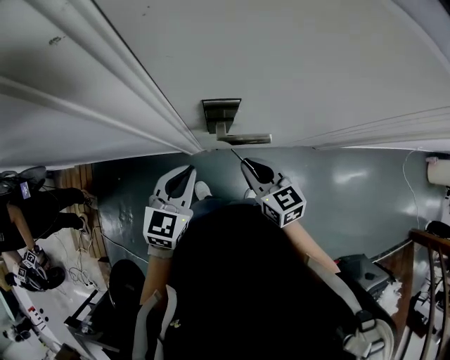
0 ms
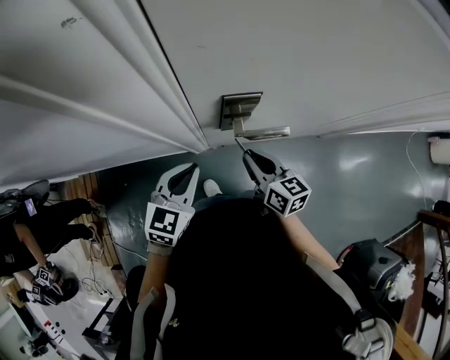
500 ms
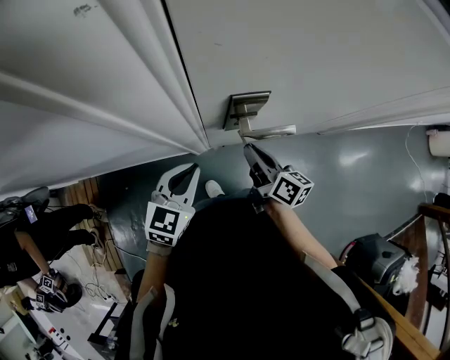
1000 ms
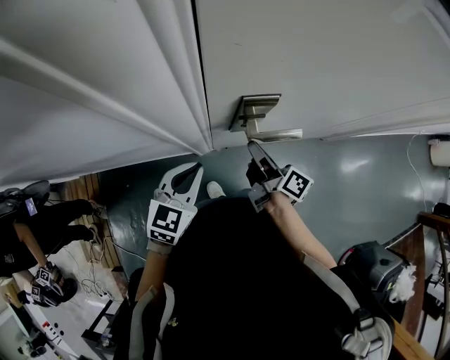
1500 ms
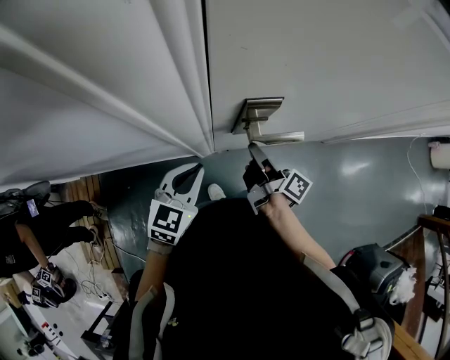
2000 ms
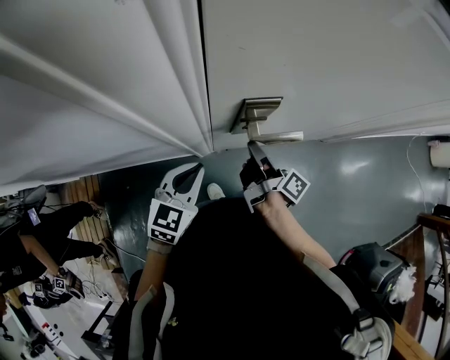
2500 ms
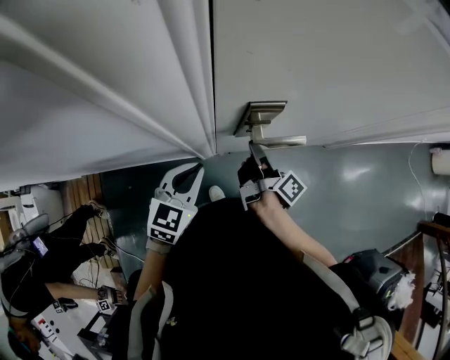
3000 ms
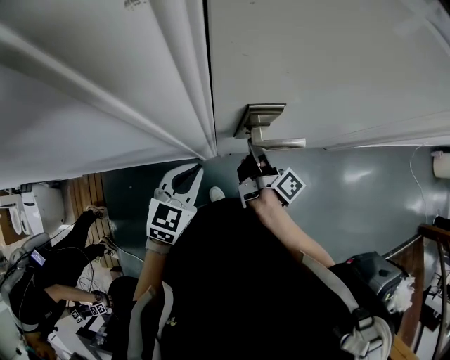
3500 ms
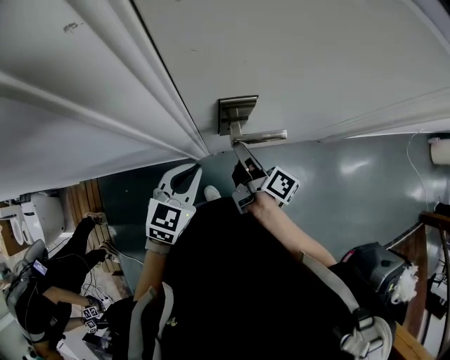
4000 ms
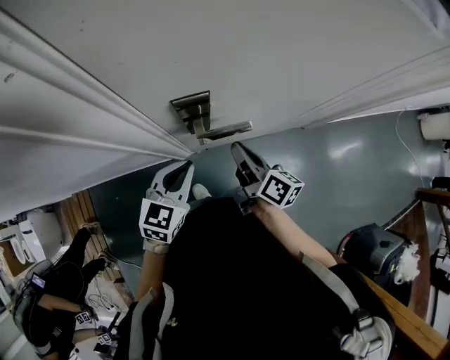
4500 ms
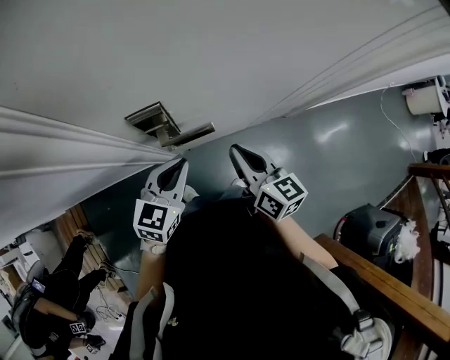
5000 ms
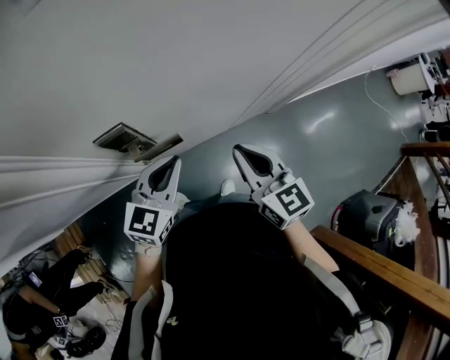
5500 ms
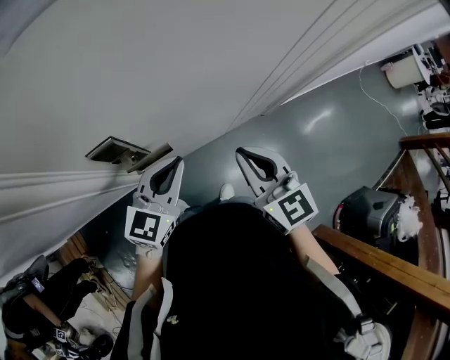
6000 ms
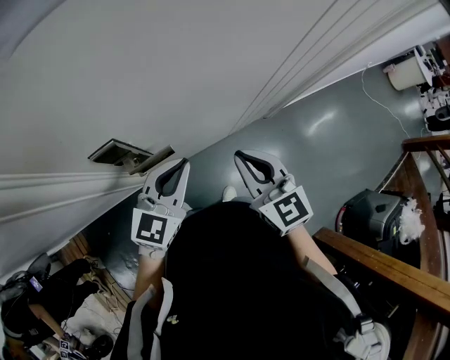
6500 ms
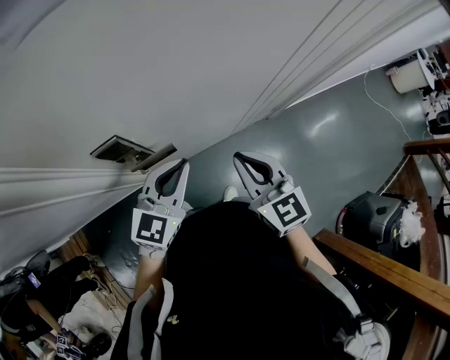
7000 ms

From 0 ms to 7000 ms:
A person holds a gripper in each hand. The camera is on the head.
From 0 ms to 2000 ms: The left gripper heads to the left, covering roughly 5 cm; the right gripper changes place by some 5 cm, and twists some 70 degrees clockwise, seen from behind.
From 2000 ms to 3500 ms: The grippers stay close to where they were, moving slightly.
From 3500 ms to 5000 ms: The right gripper is displaced to the right and upward by roughly 15 cm, and rotates around the line of its fingers by some 60 degrees, counterclockwise from behind. The left gripper travels to the right by about 15 cm.
From 5000 ms to 7000 ms: Both grippers move to the right and upward, roughly 10 cm. The right gripper swivels roughly 30 degrees.

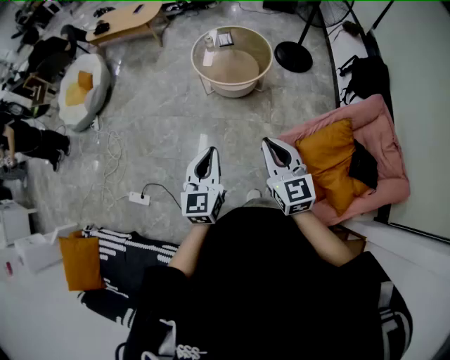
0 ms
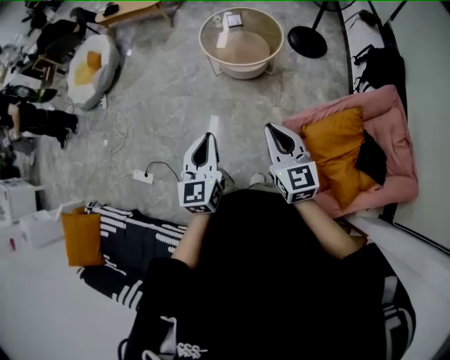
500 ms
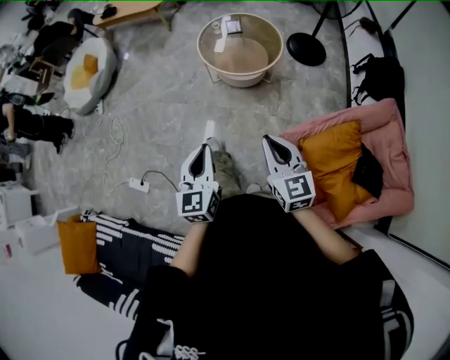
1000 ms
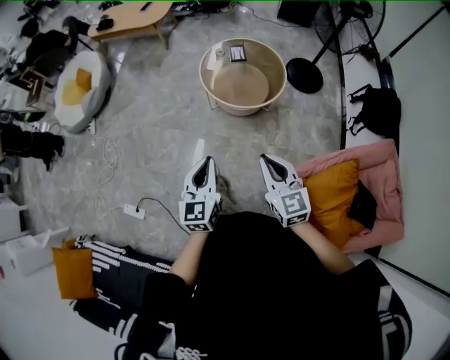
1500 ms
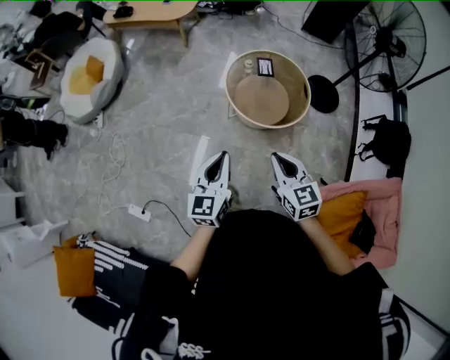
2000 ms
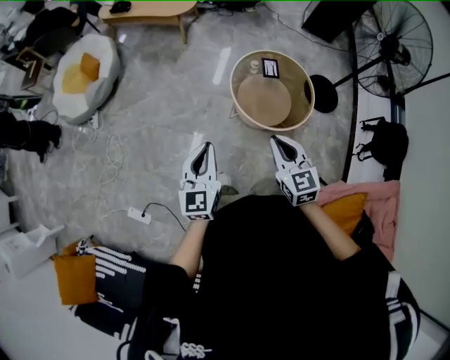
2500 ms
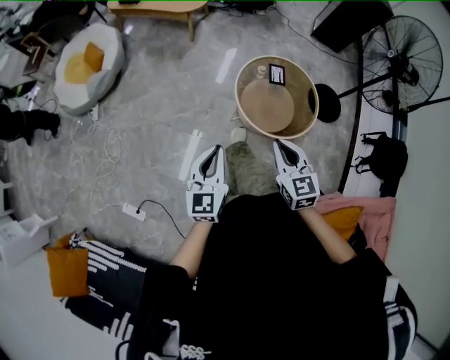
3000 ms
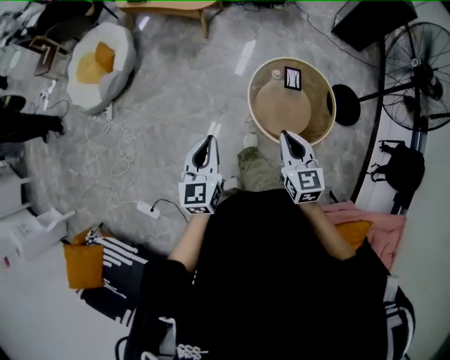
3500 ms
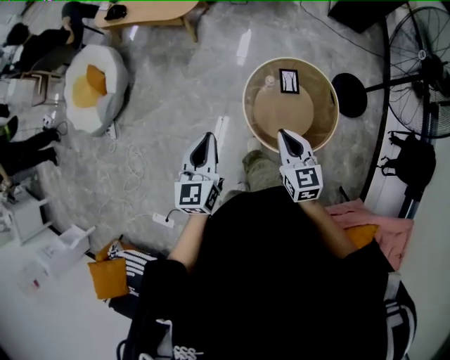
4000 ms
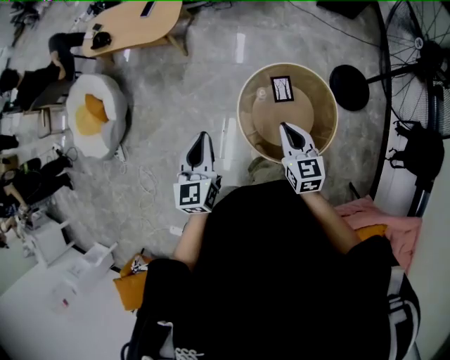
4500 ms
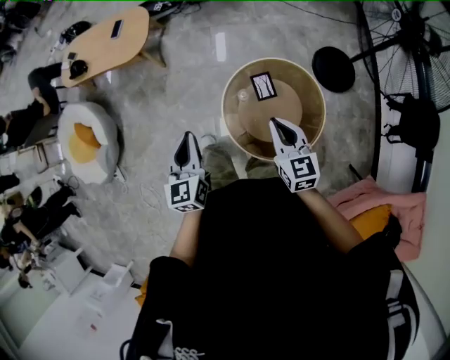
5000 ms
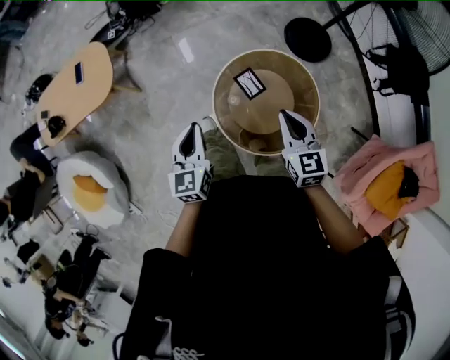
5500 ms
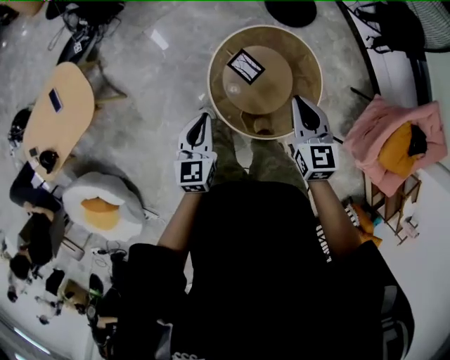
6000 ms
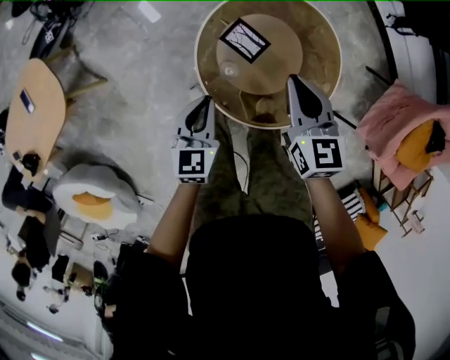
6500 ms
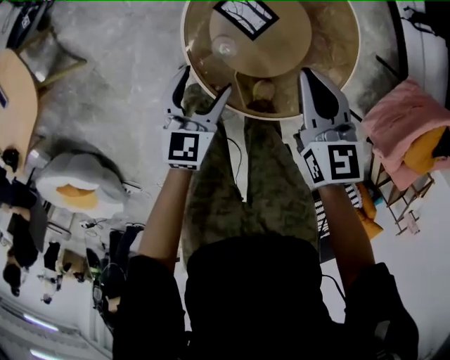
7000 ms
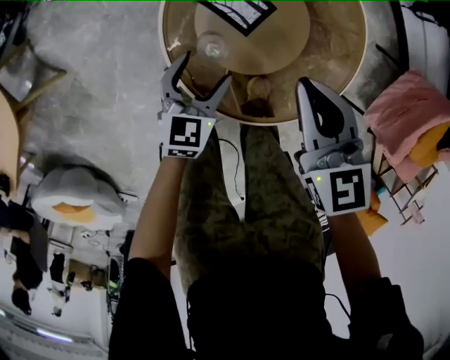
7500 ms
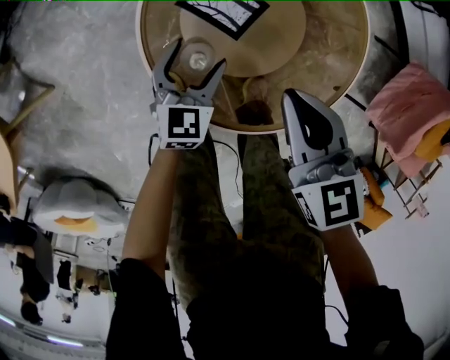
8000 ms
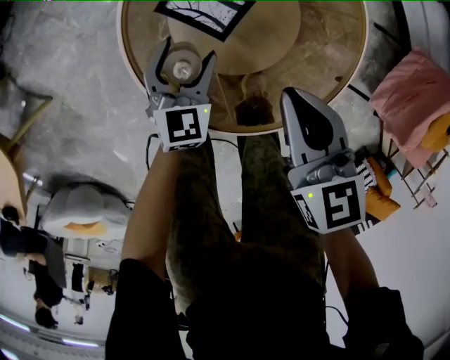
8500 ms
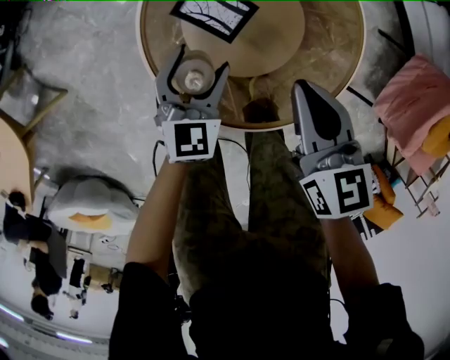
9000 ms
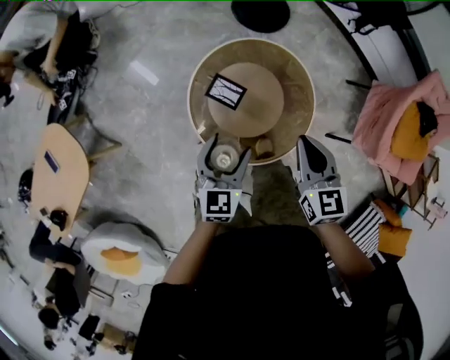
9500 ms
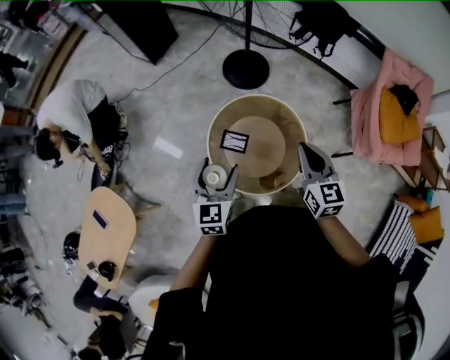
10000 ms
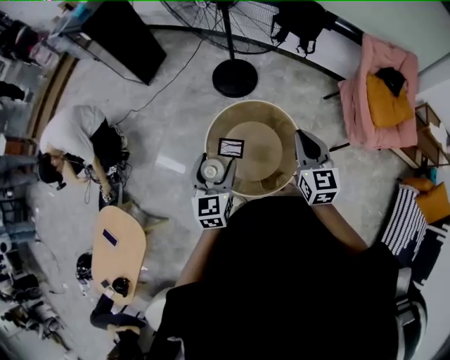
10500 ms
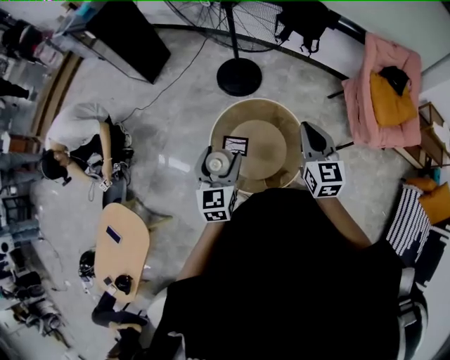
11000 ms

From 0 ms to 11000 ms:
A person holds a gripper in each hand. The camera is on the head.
From 0 ms to 2000 ms: Both grippers move forward, approximately 35 cm.
From 2000 ms to 3500 ms: The right gripper shifts roughly 25 cm forward. The left gripper travels forward and to the left by roughly 25 cm.
From 3500 ms to 5500 ms: The pair of grippers is taken approximately 50 cm. The right gripper changes its angle by approximately 40 degrees. Meanwhile the left gripper swivels some 40 degrees.
From 5500 ms to 7500 ms: Both grippers travel together downward, roughly 40 cm. The left gripper rotates some 40 degrees, and opens.
From 7500 ms to 9000 ms: The left gripper travels forward by about 5 cm, and moves roughly 5 cm downward and comes back; the right gripper ends up some 5 cm from where it was.
From 9000 ms to 11000 ms: The two grippers go about 50 cm upward. The right gripper changes its angle by approximately 40 degrees.

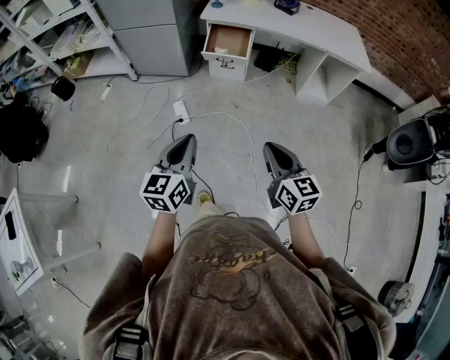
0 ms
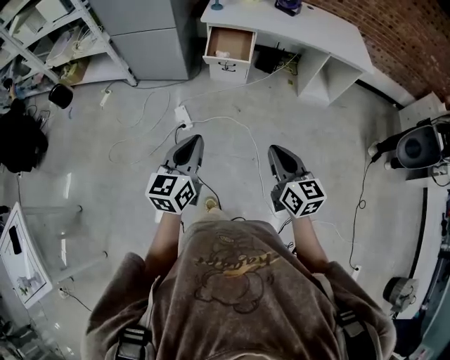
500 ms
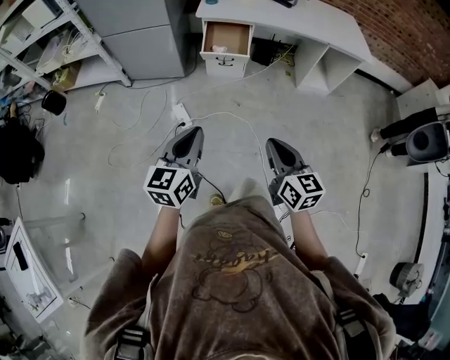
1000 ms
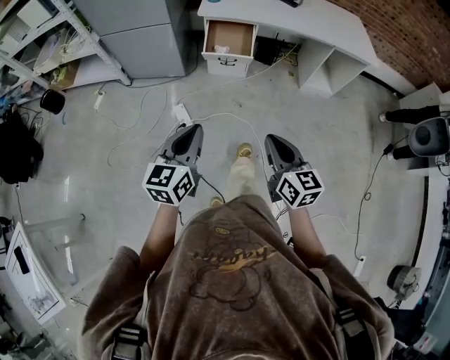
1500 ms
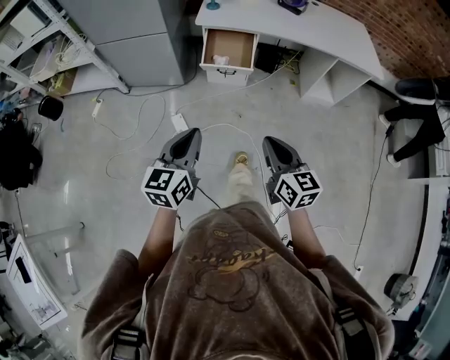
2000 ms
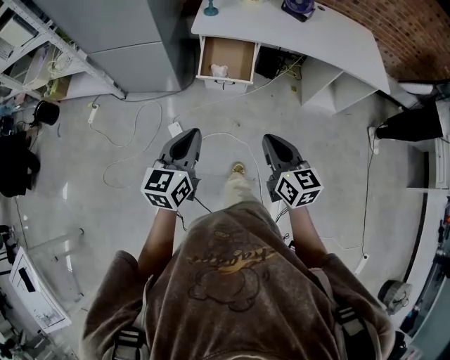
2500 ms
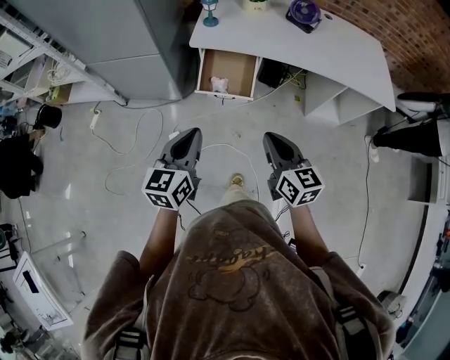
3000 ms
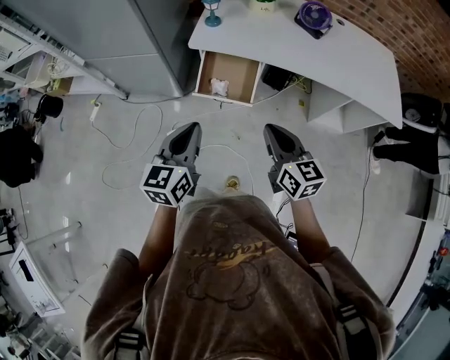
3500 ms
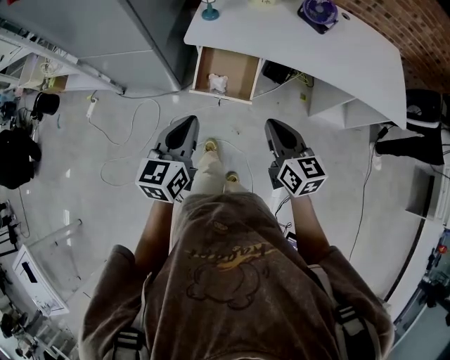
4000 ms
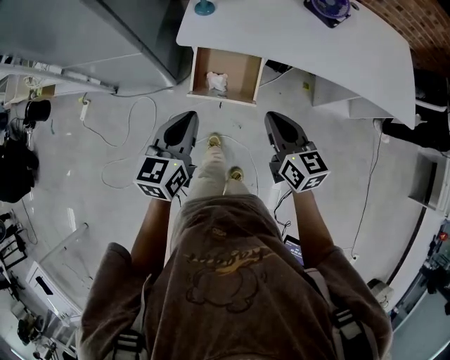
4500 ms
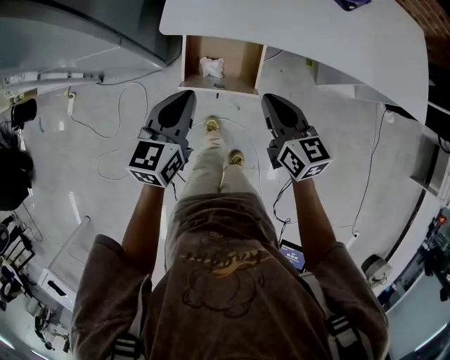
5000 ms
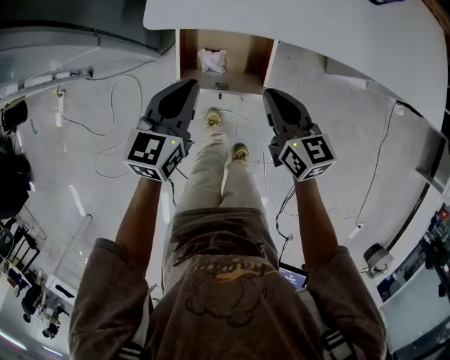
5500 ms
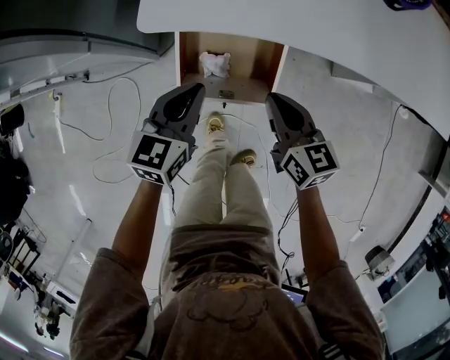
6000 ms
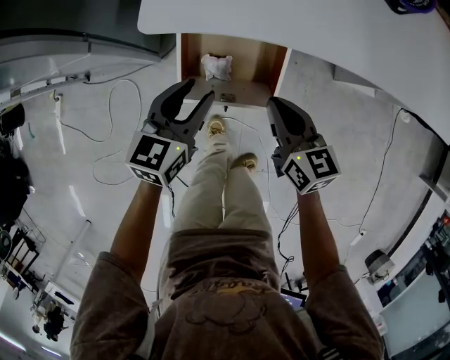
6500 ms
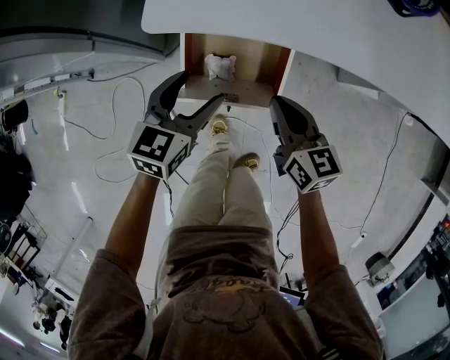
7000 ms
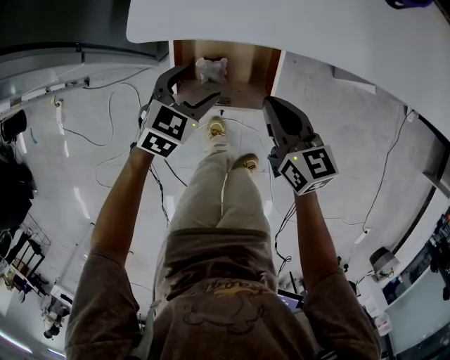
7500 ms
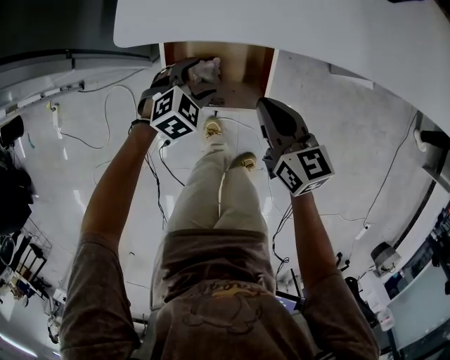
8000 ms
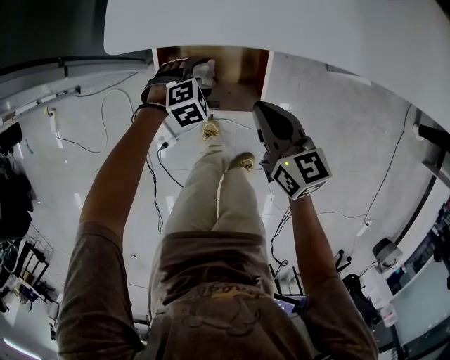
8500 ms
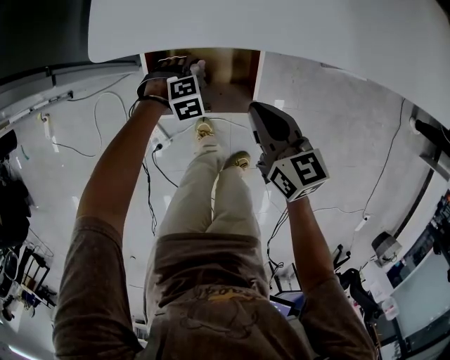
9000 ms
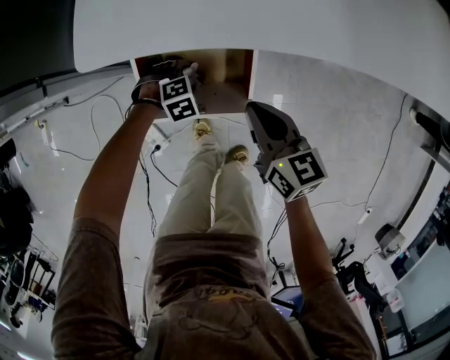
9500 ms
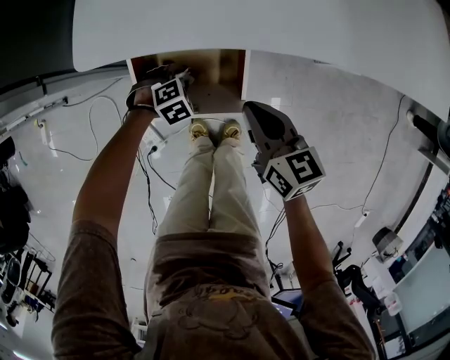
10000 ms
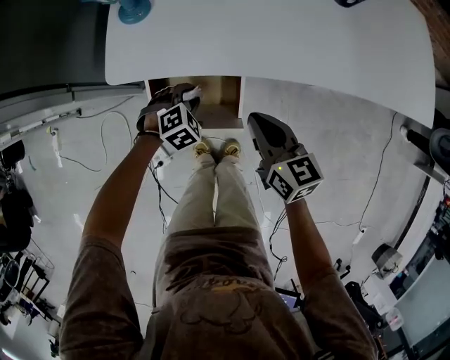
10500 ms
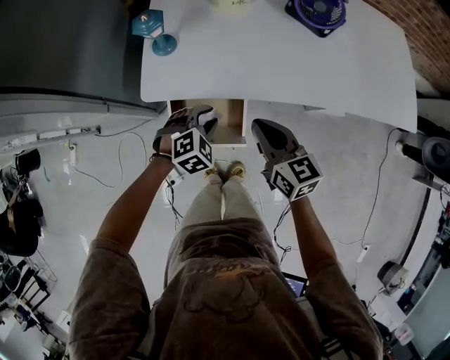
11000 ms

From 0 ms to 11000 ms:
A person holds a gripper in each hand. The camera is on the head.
From 0 ms to 2000 ms: The grippers both shift forward by about 20 cm.
From 2000 ms to 3500 ms: The two grippers go roughly 30 cm forward.
From 3500 ms to 5500 ms: The two grippers go about 30 cm forward and downward.
From 5500 ms to 7500 ms: The left gripper shifts roughly 10 cm downward, changes its angle by some 30 degrees, and opens its fingers.
From 7500 ms to 9000 ms: The left gripper moves downward, roughly 20 cm, and tilts its fingers approximately 30 degrees downward.
From 9000 ms to 11000 ms: The right gripper shifts roughly 15 cm upward, while the left gripper moves upward, some 25 cm, swivels about 30 degrees, and closes.
